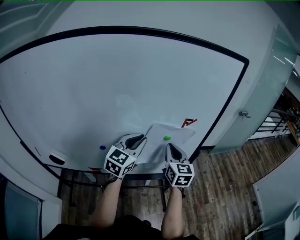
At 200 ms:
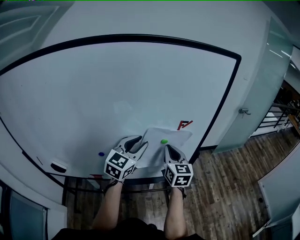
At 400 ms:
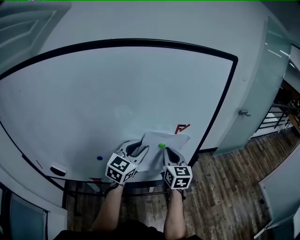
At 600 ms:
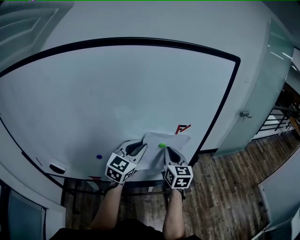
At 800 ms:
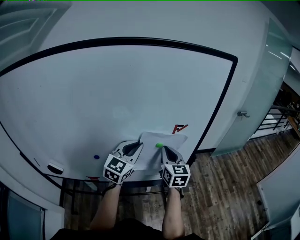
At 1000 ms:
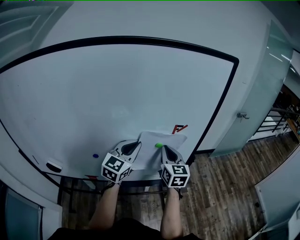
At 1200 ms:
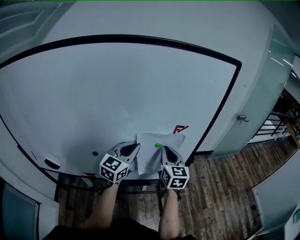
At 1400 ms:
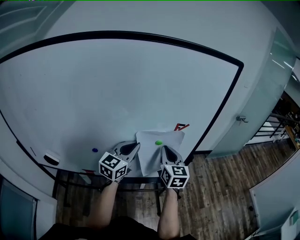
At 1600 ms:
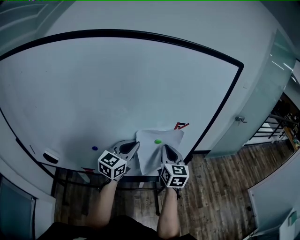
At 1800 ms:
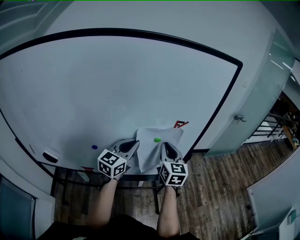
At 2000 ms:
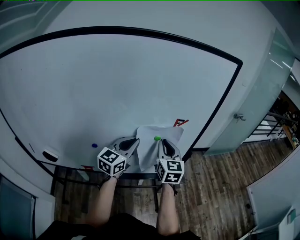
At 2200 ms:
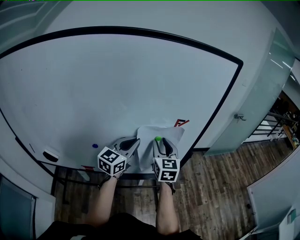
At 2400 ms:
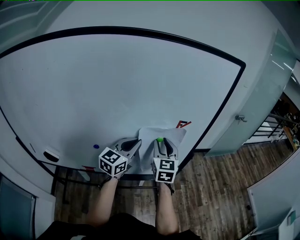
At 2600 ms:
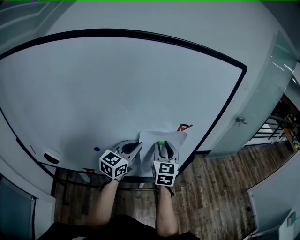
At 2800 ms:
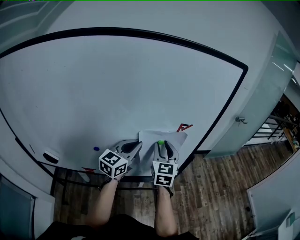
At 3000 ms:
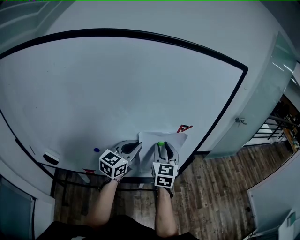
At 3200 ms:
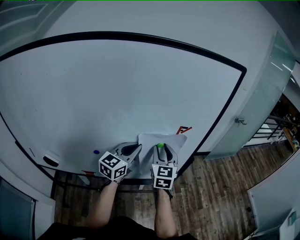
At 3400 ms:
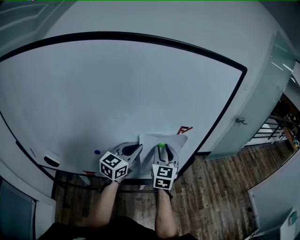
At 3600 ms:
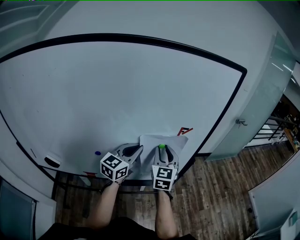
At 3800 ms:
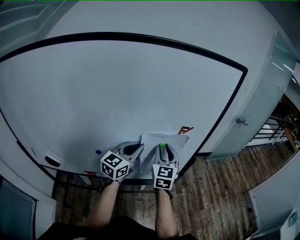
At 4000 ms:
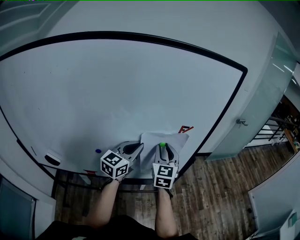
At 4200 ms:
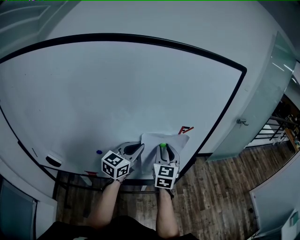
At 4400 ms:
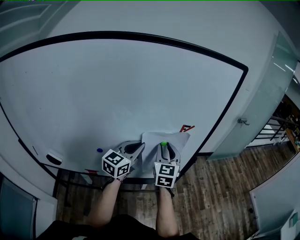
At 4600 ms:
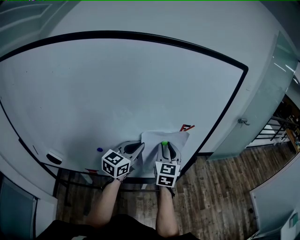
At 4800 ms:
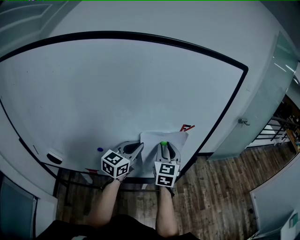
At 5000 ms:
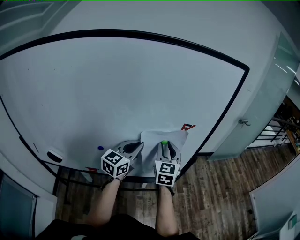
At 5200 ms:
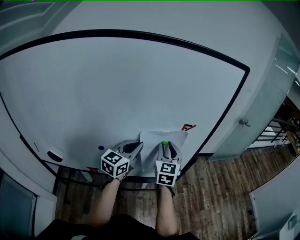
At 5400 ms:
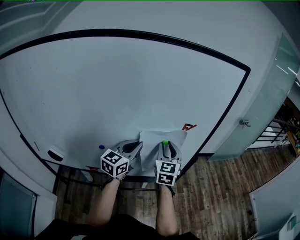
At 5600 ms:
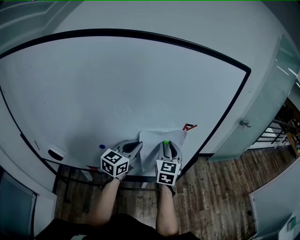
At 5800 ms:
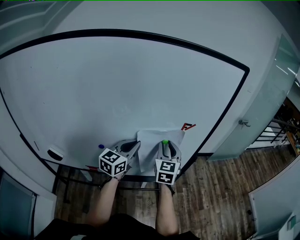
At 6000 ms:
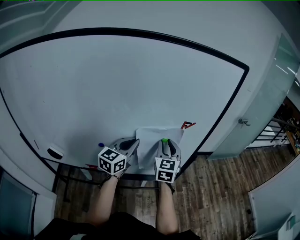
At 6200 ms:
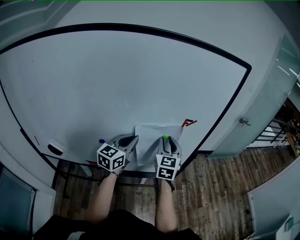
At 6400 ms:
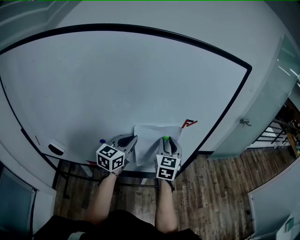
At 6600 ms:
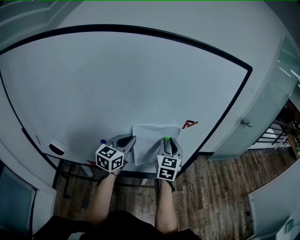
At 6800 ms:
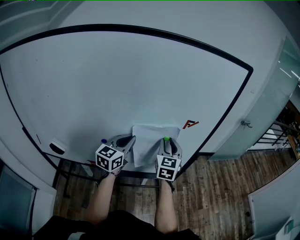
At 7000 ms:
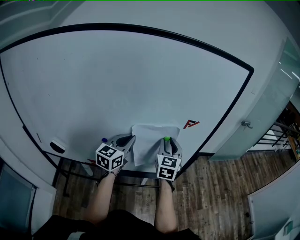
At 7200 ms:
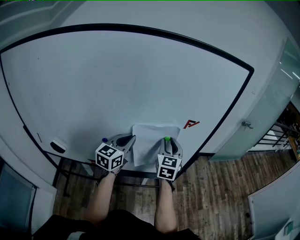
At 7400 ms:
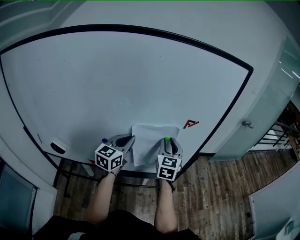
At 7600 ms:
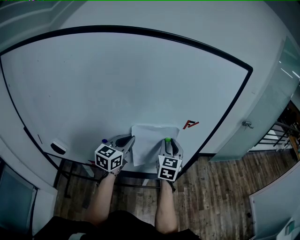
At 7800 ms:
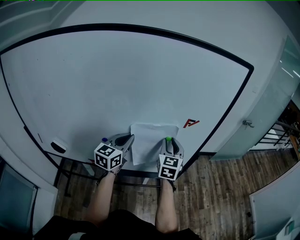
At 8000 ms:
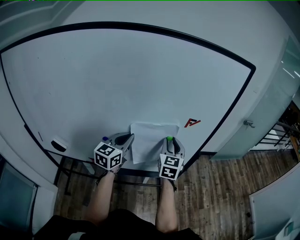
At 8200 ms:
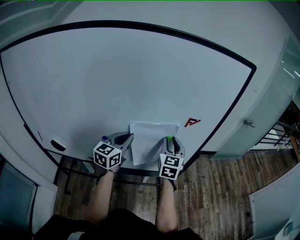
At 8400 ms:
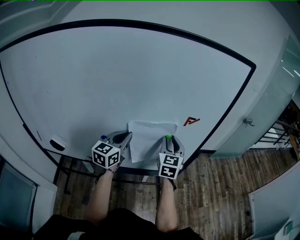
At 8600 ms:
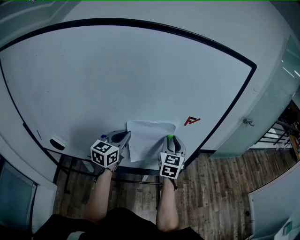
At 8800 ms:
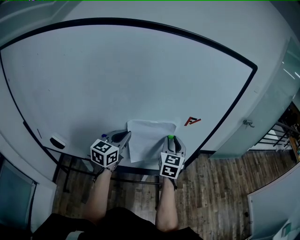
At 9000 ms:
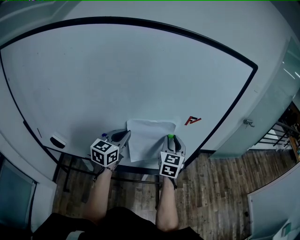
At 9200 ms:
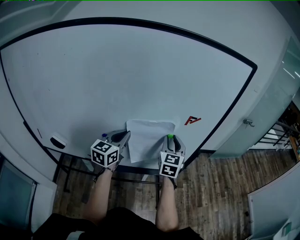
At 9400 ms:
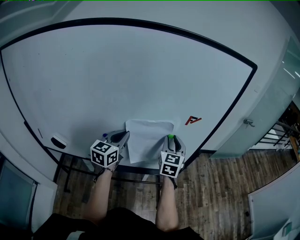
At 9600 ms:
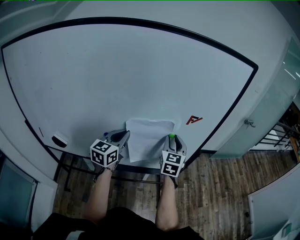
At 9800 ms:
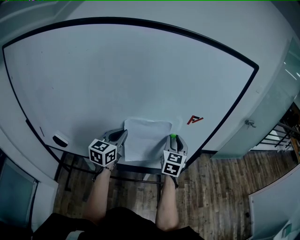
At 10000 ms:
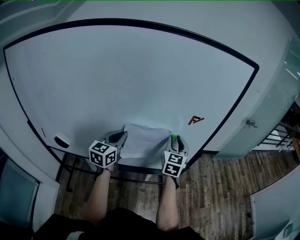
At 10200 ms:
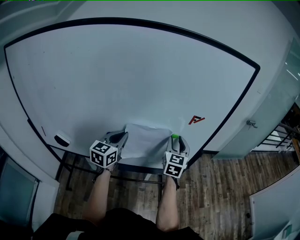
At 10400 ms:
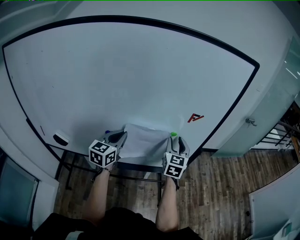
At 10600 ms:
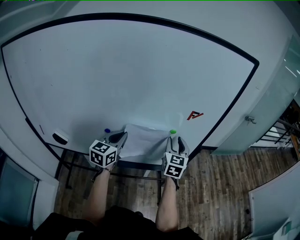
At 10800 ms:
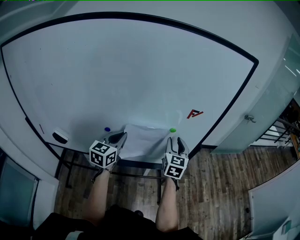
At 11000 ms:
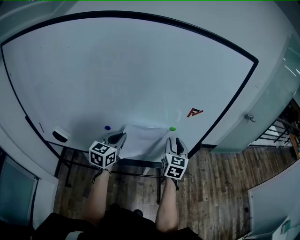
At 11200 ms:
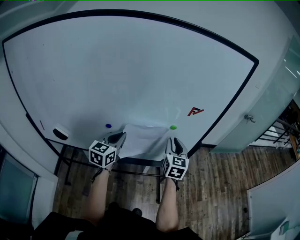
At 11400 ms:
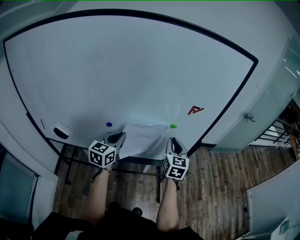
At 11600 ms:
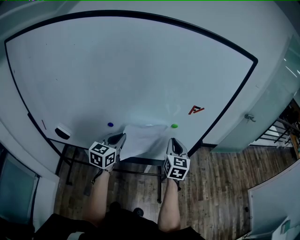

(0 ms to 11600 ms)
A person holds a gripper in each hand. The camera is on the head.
0 ms - 1400 ms: The grippers make only small movements.
1400 ms - 2800 ms: The right gripper opens.
2800 ms - 4400 ms: Both grippers stay put.
4400 ms - 5800 ms: The grippers move only a little.
5800 ms - 8800 ms: The grippers make only small movements.
8800 ms - 10200 ms: There are only small adjustments of the grippers.
10200 ms - 11600 ms: The right gripper moves backward, some 5 cm, and closes up. Meanwhile the left gripper ends up about 5 cm from where it was.

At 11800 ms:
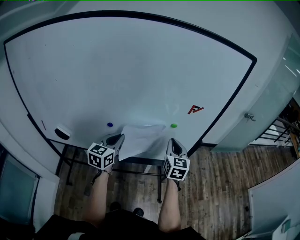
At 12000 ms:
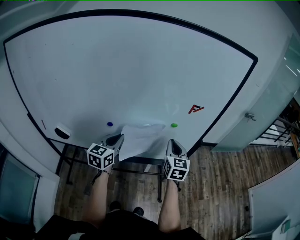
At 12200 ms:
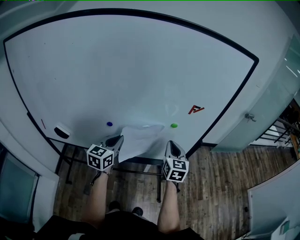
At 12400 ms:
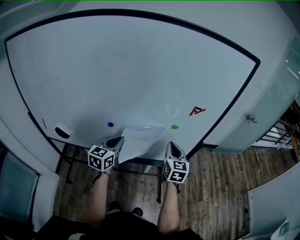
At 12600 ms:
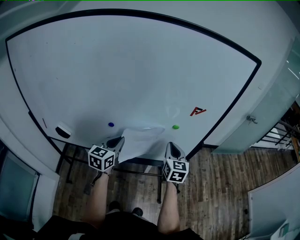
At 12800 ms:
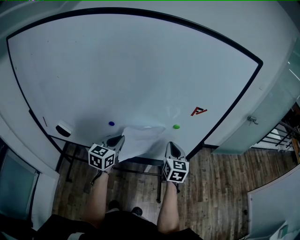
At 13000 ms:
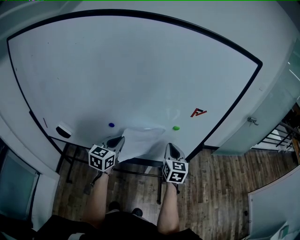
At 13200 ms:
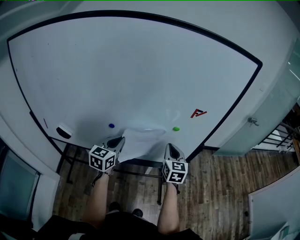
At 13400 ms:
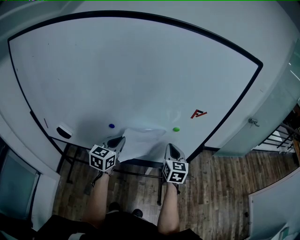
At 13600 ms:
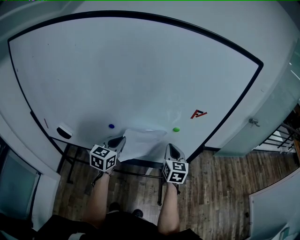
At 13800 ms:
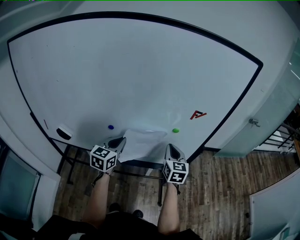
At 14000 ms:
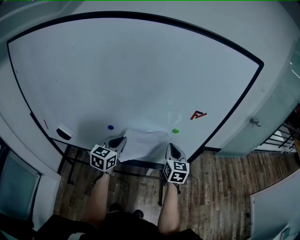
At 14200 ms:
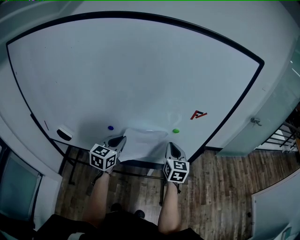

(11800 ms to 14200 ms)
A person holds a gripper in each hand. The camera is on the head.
11800 ms - 14200 ms: The grippers move only a little.

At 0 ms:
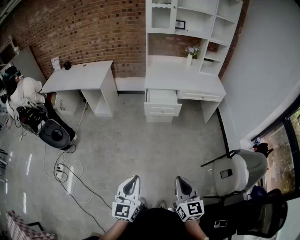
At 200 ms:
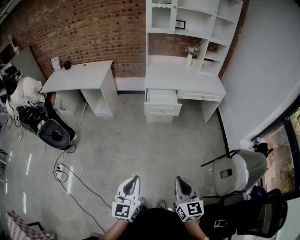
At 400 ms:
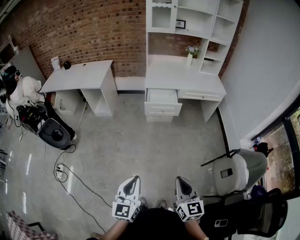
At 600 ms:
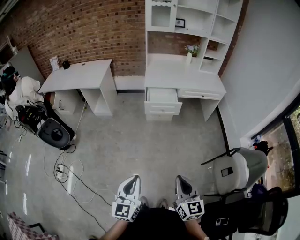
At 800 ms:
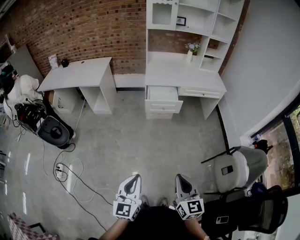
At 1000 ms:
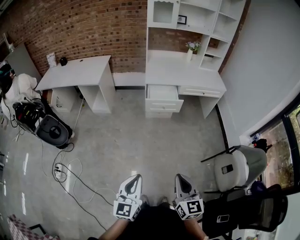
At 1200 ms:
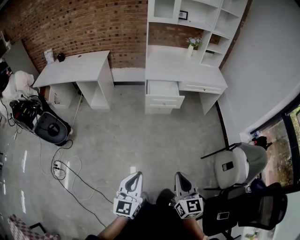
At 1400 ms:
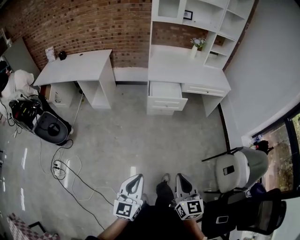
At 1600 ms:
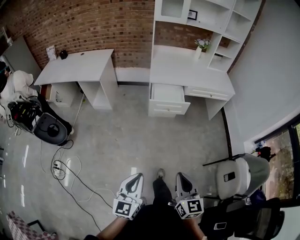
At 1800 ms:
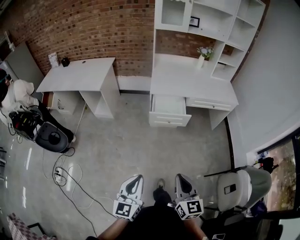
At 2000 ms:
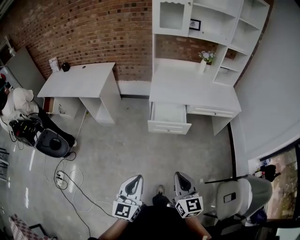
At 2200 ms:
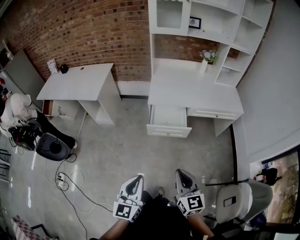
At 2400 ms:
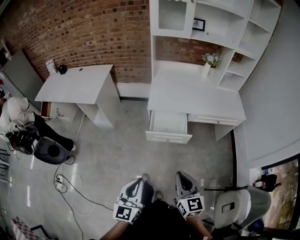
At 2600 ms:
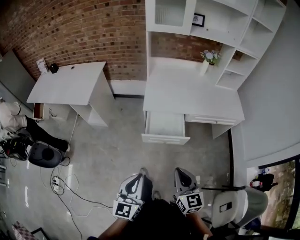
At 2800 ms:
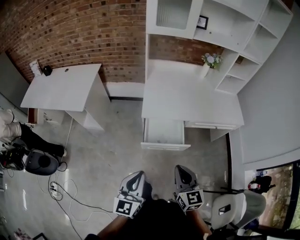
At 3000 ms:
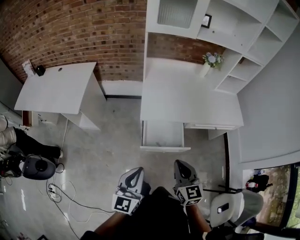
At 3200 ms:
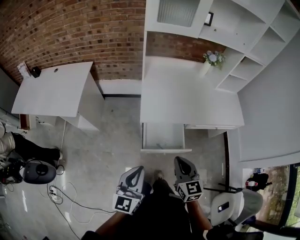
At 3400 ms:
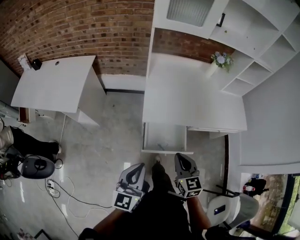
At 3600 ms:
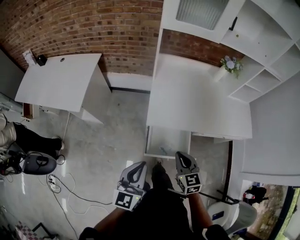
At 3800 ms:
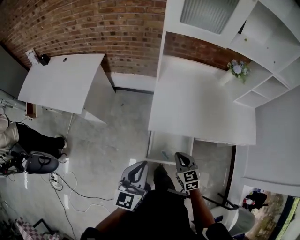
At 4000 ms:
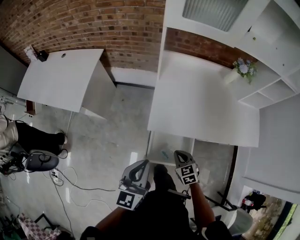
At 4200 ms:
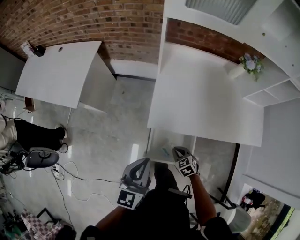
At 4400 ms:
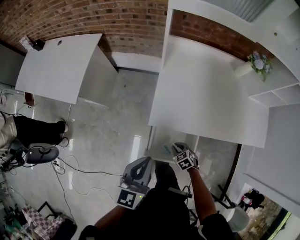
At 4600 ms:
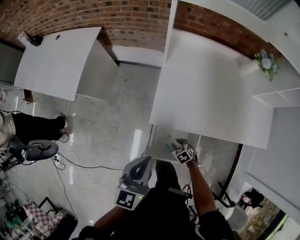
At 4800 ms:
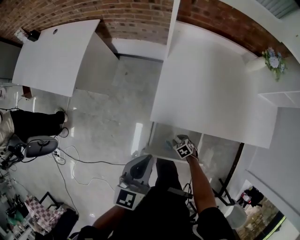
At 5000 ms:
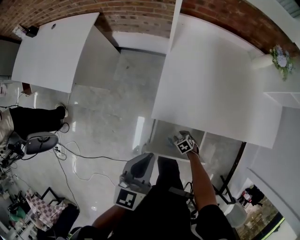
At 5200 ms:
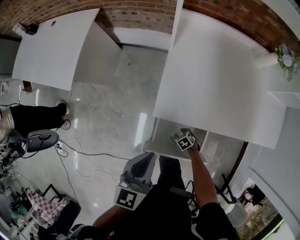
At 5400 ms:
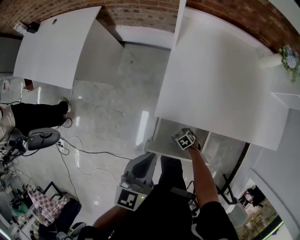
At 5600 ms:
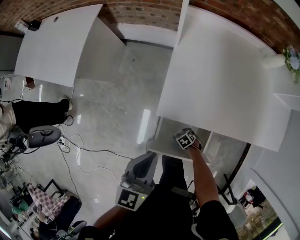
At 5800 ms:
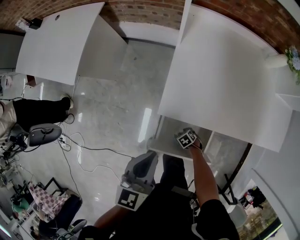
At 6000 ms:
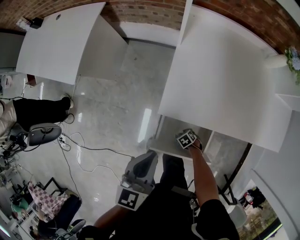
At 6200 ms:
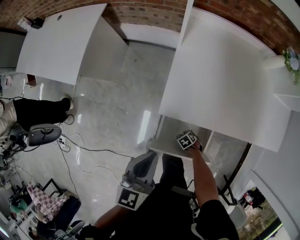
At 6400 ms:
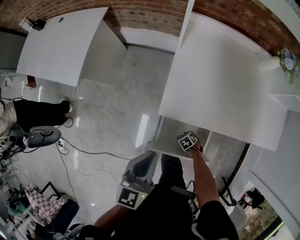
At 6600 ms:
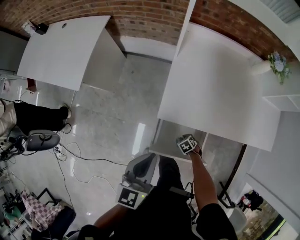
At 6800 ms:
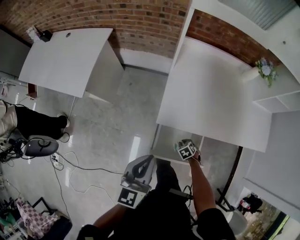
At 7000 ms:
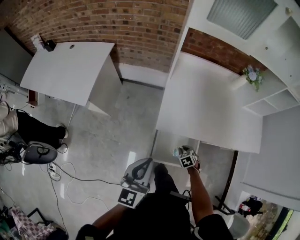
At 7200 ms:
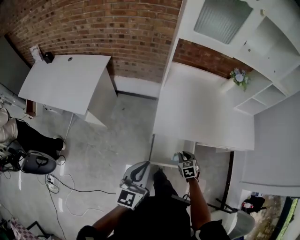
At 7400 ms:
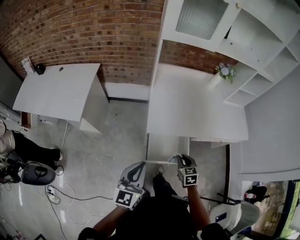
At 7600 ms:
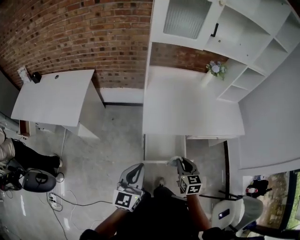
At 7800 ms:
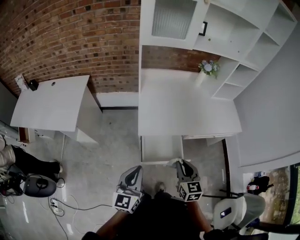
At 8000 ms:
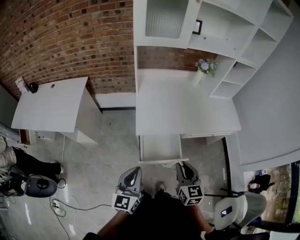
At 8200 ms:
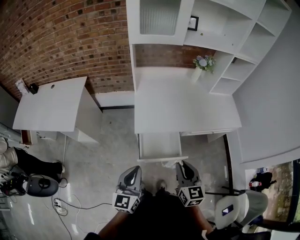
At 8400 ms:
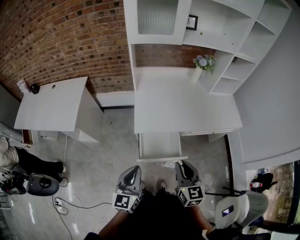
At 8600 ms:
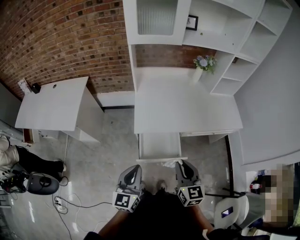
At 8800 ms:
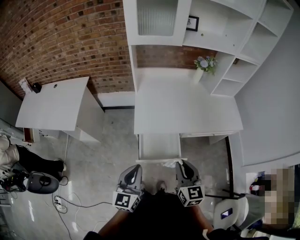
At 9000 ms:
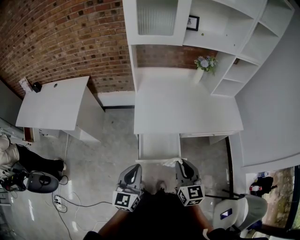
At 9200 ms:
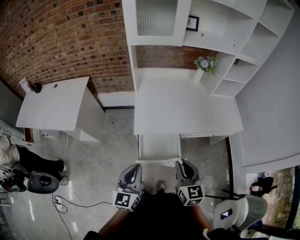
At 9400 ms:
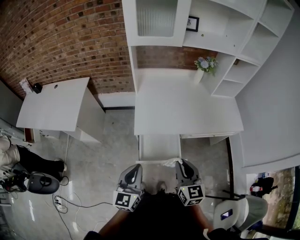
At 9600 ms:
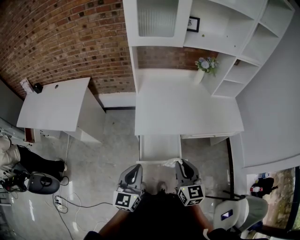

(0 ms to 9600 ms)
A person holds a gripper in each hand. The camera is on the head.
0 ms - 1600 ms: The right gripper goes roughly 15 cm forward and to the left. Meanwhile the left gripper is displaced forward, to the left and downward by about 15 cm.
1600 ms - 3200 ms: The two grippers travel together, forward, some 60 cm.
3200 ms - 4800 ms: The left gripper moves roughly 25 cm. Meanwhile the right gripper travels downward by approximately 50 cm, tips its fingers downward by approximately 50 degrees, and opens its fingers.
4800 ms - 6400 ms: The right gripper shifts about 10 cm downward.
6400 ms - 8000 ms: The right gripper shifts approximately 50 cm upward, and angles its fingers upward, by approximately 60 degrees; the left gripper moves approximately 25 cm, and turns by approximately 20 degrees.
8000 ms - 9600 ms: The grippers move only a little.
